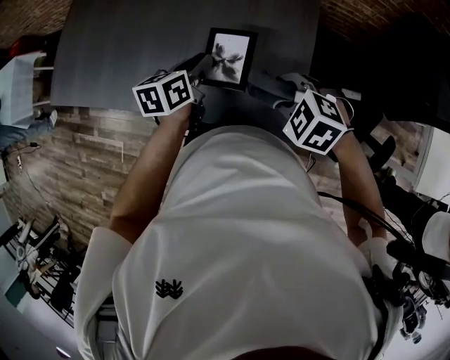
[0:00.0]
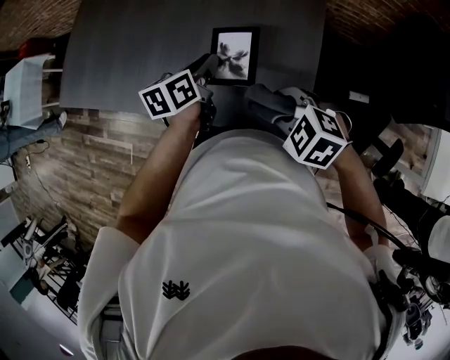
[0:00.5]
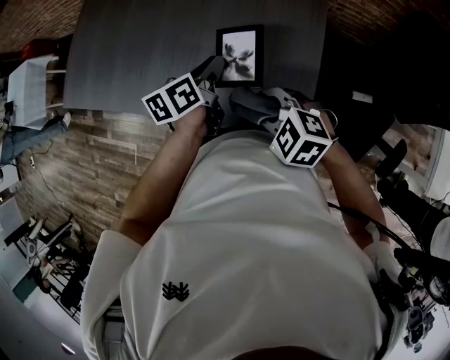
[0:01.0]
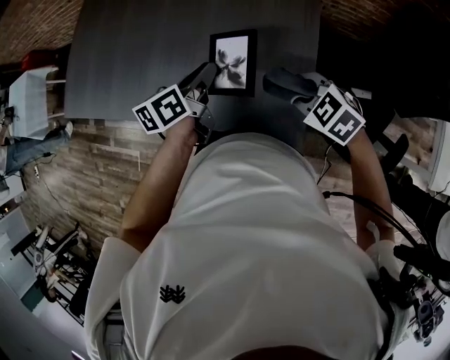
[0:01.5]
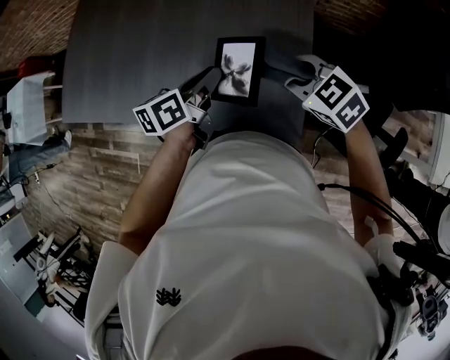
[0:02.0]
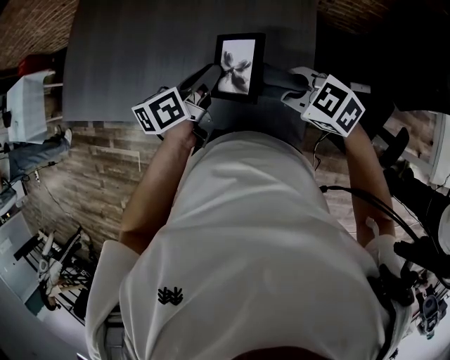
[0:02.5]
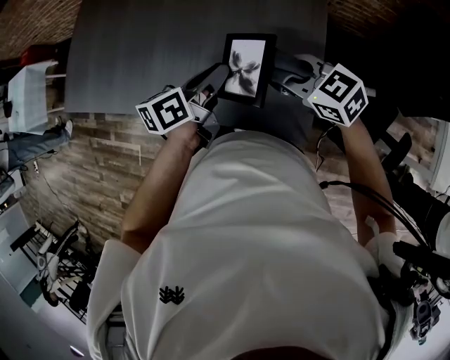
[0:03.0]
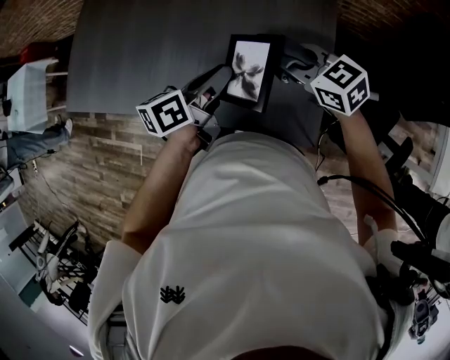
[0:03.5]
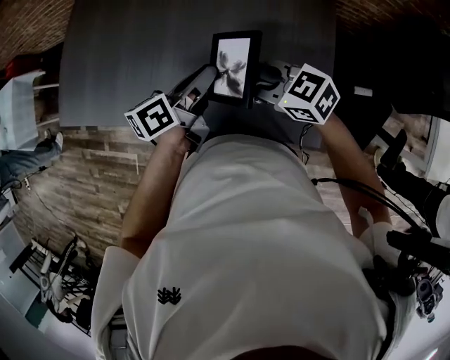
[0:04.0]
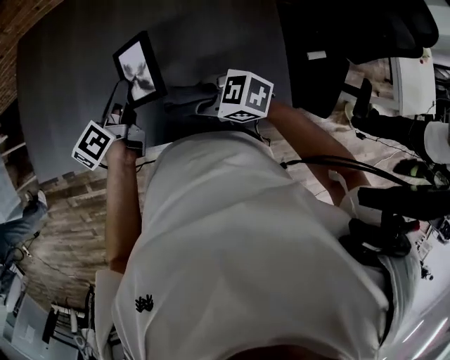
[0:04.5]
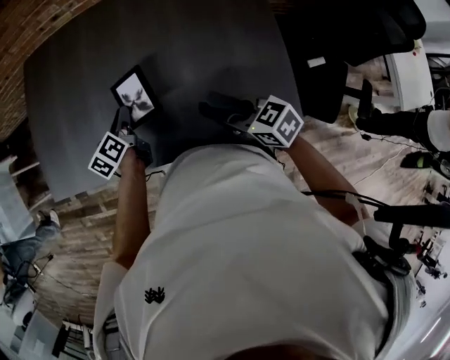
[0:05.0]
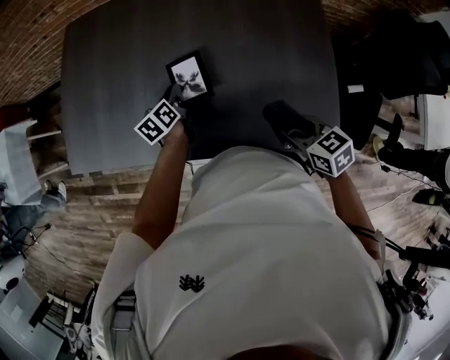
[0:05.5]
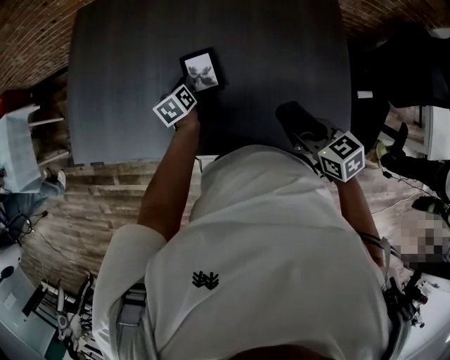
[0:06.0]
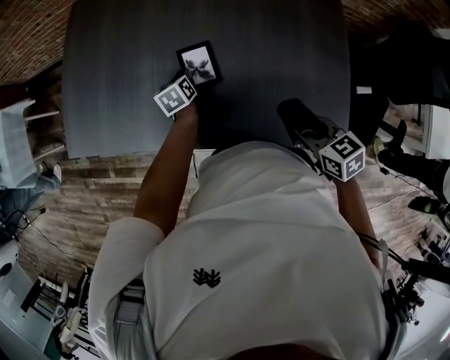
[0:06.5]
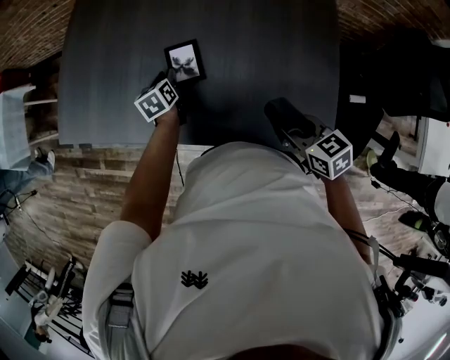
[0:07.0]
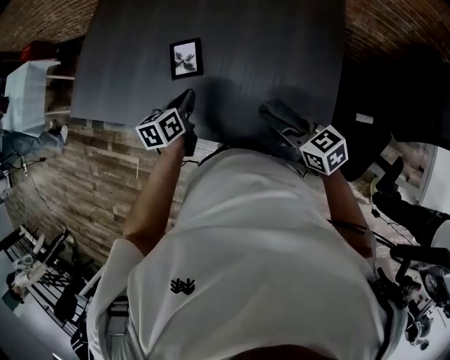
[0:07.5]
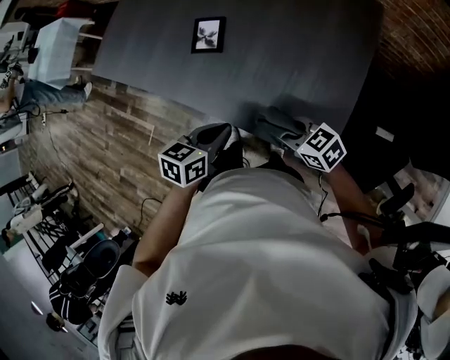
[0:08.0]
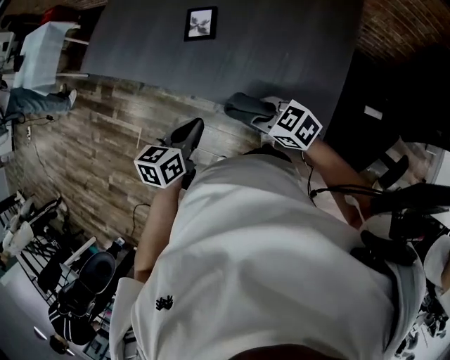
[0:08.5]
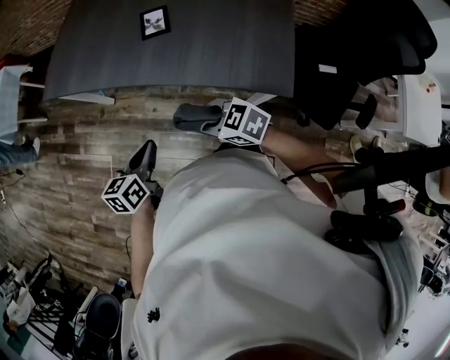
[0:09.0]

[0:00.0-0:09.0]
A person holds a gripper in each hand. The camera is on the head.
0:00.0 to 0:02.0: The right gripper reaches about 5 cm to the left, then returns, and turns by some 30 degrees.
0:02.0 to 0:04.5: The left gripper moves to the left and forward, some 25 cm; the right gripper shifts roughly 25 cm to the left, and rotates about 20 degrees.
0:04.5 to 0:07.0: The left gripper travels downward, to the left and forward by some 20 cm, and rotates roughly 40 degrees. The right gripper goes about 10 cm to the right and backward, and swivels about 30 degrees.
0:07.0 to 0:09.0: The right gripper travels to the left and backward by some 30 cm, and changes its angle by about 40 degrees. Meanwhile the left gripper shifts approximately 50 cm backward, and closes up.

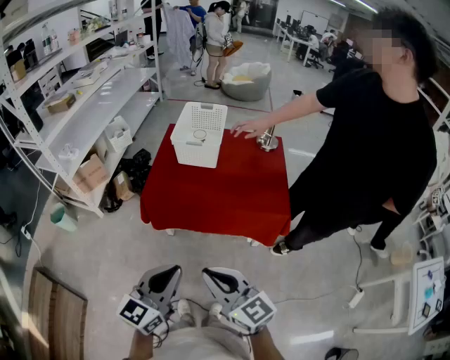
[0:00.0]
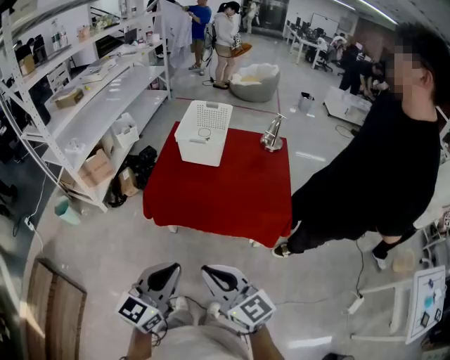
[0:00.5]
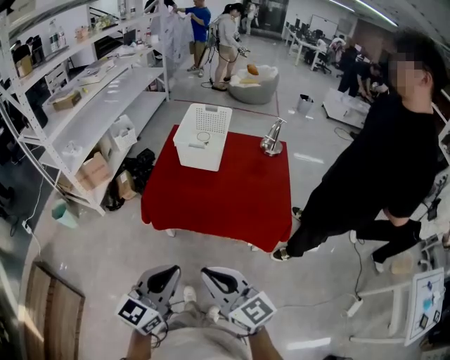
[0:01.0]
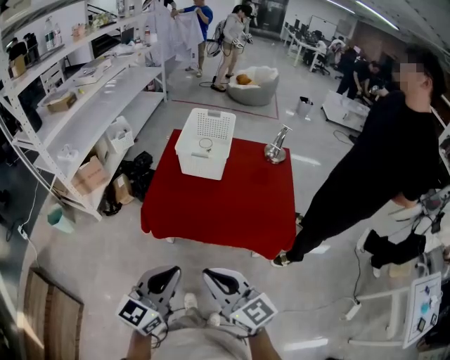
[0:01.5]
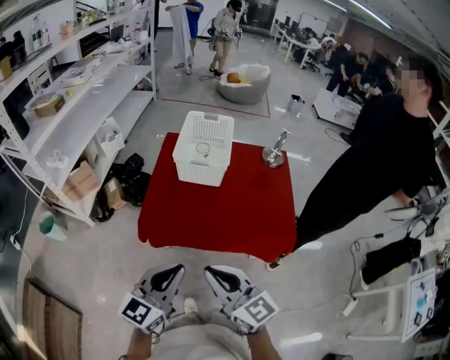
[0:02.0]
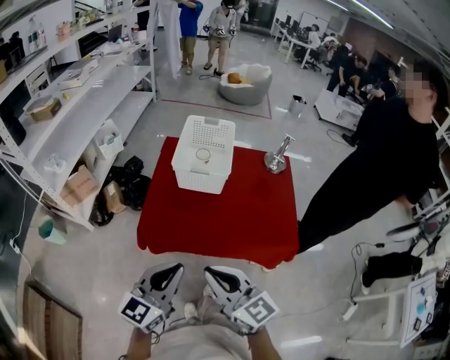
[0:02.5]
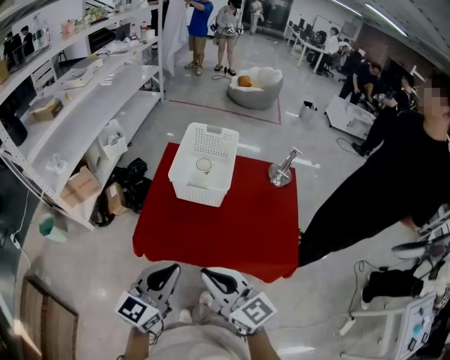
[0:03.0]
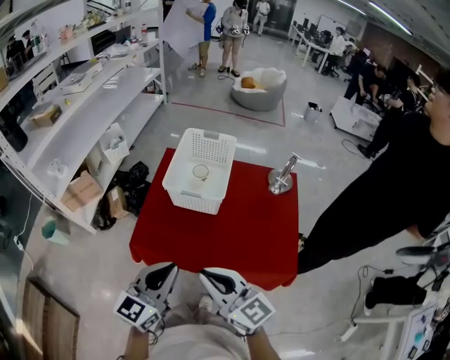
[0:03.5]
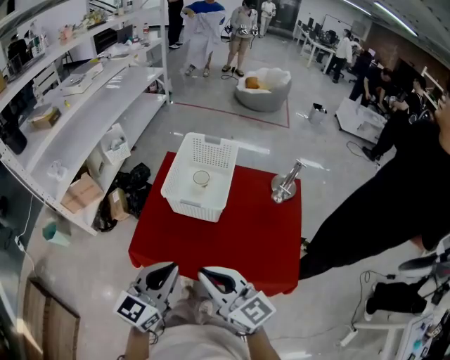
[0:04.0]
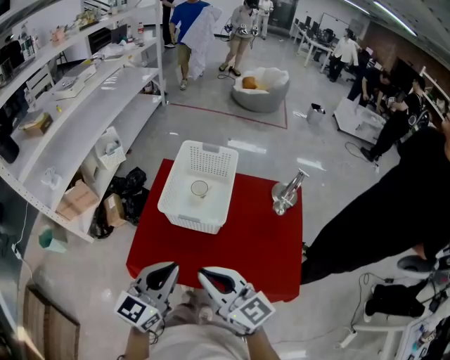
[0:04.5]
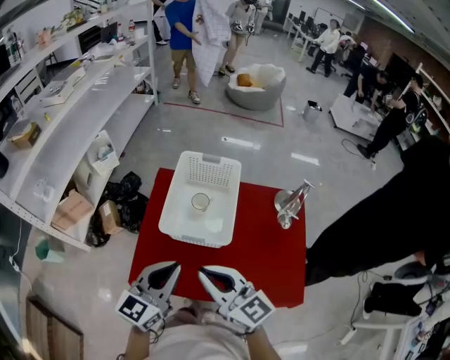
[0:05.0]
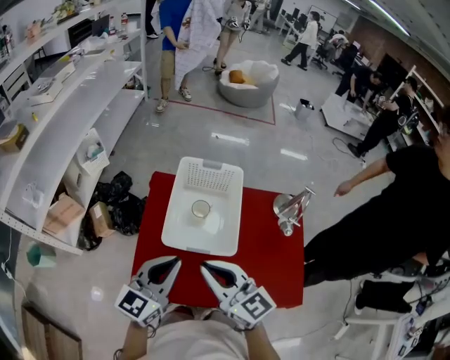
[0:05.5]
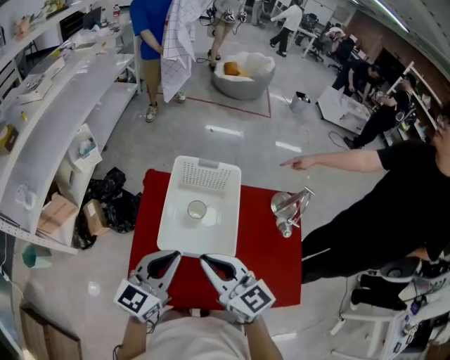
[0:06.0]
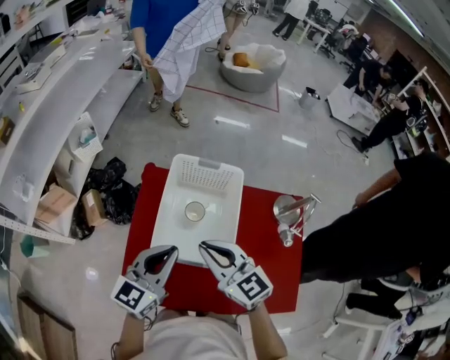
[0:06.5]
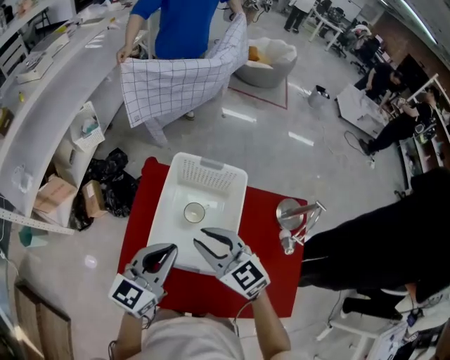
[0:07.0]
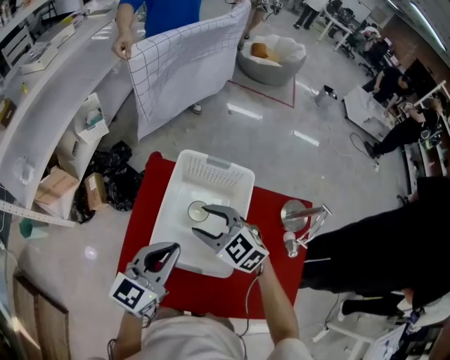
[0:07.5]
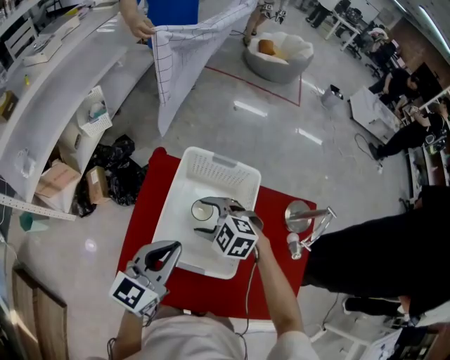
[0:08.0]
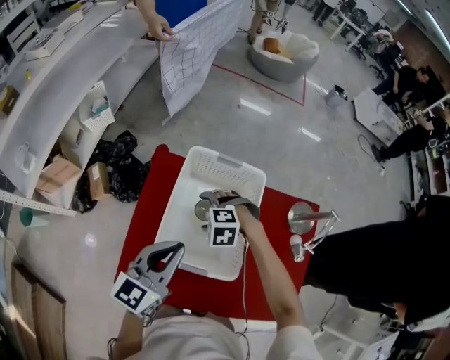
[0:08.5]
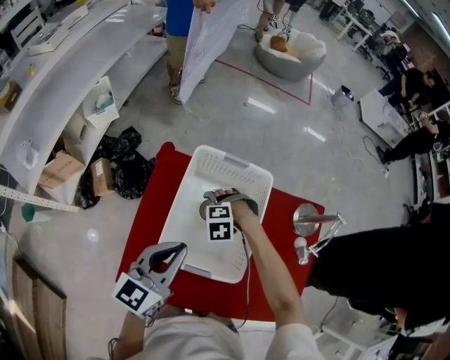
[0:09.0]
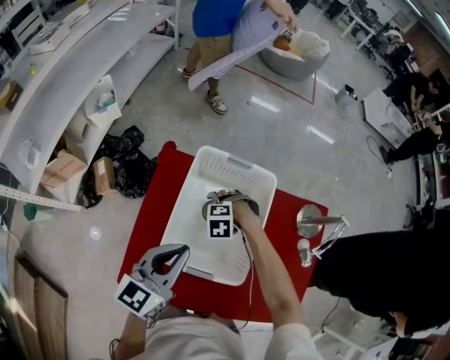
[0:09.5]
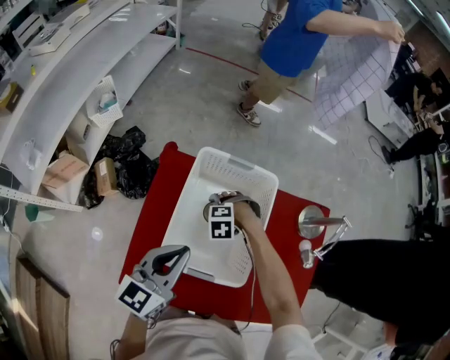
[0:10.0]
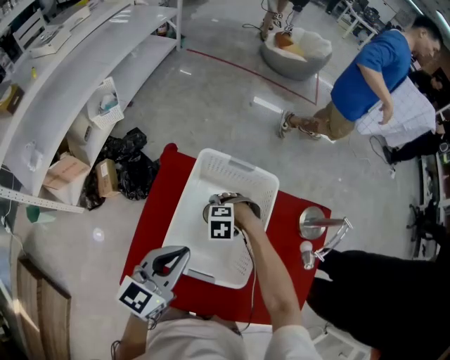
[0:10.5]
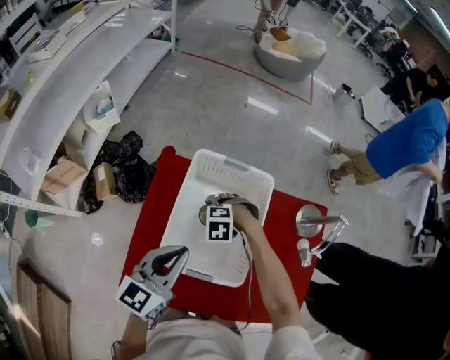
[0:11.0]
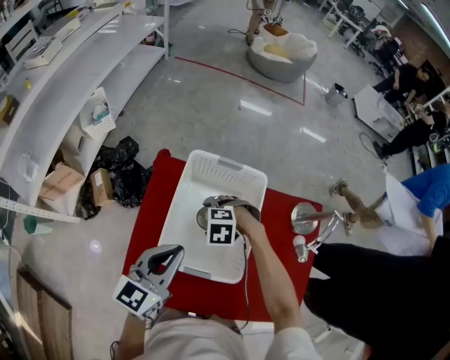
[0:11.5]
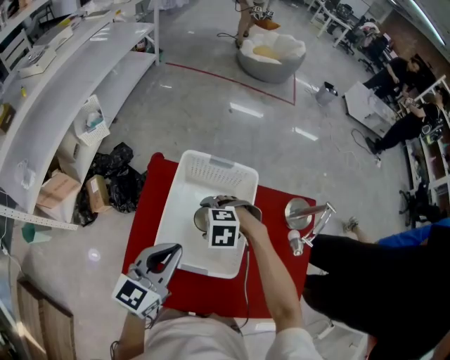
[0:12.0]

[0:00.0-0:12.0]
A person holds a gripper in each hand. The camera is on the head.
0:00.0 to 0:02.0: Both grippers travel together forward, approximately 15 cm.
0:02.0 to 0:04.0: Both grippers travel together forward, roughly 20 cm.
0:04.0 to 0:06.0: The two grippers go approximately 25 cm forward.
0:06.0 to 0:08.0: The right gripper heads downward and forward, covering some 25 cm, angles its fingers downward, by approximately 50 degrees, and opens up. The left gripper moves forward, approximately 10 cm.
0:08.0 to 0:10.0: The right gripper is displaced downward by roughly 15 cm, and tilts its fingers roughly 30 degrees downward.
0:10.0 to 0:12.0: The right gripper travels upward by some 10 cm.

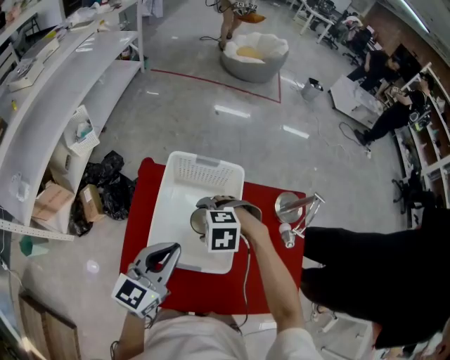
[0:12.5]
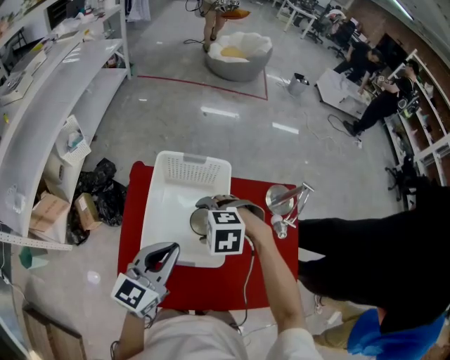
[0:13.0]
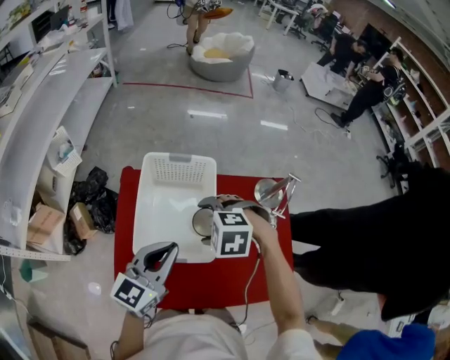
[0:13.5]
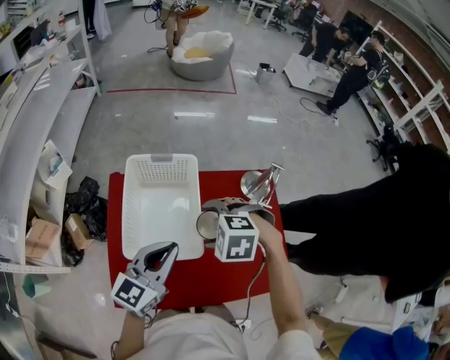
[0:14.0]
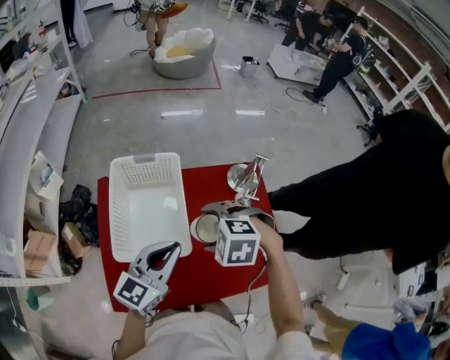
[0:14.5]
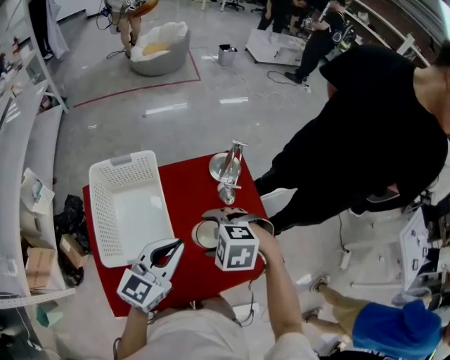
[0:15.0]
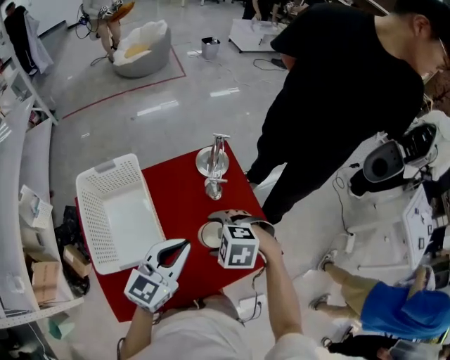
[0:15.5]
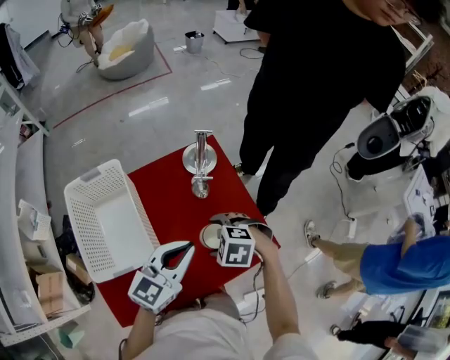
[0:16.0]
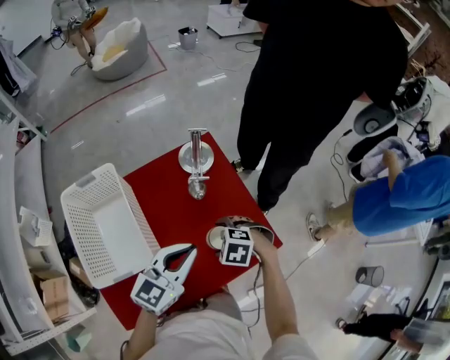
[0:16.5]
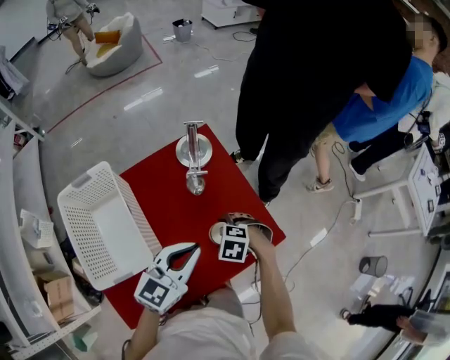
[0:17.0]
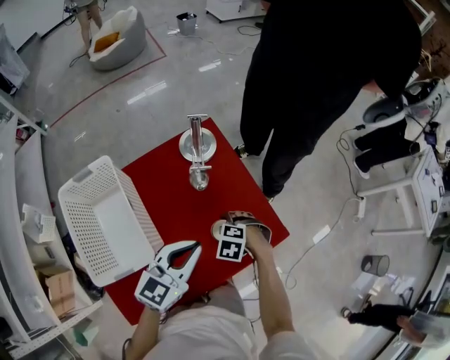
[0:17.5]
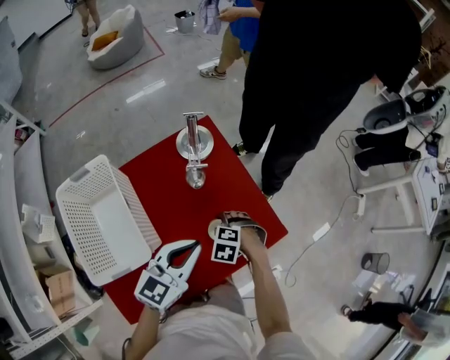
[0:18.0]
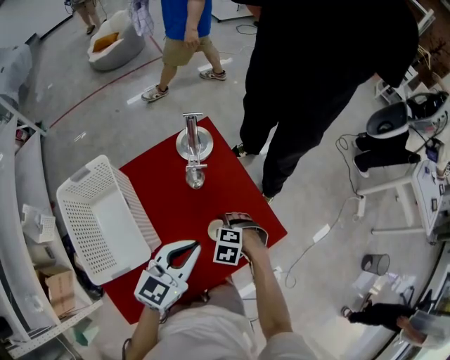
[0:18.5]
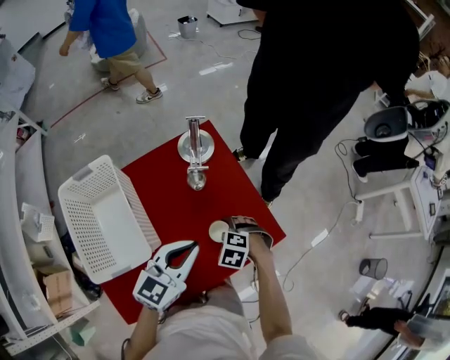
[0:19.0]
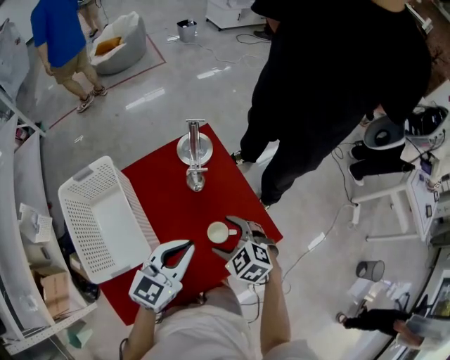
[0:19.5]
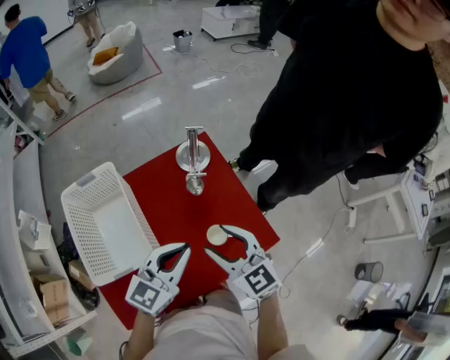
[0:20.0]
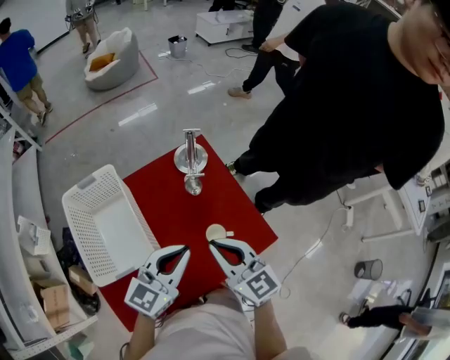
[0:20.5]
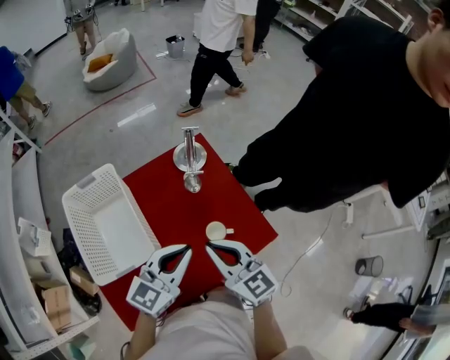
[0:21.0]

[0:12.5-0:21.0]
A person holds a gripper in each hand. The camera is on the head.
0:12.5 to 0:14.5: The right gripper shifts approximately 20 cm to the right, backward and upward, and turns by roughly 20 degrees, while the left gripper shifts about 15 cm to the right and backward.
0:14.5 to 0:16.5: The right gripper moves some 25 cm, and rotates about 30 degrees. The left gripper ends up roughly 20 cm from where it was, and changes its angle by about 20 degrees.
0:16.5 to 0:19.0: The right gripper is displaced downward by approximately 5 cm.
0:19.0 to 0:21.0: The left gripper shifts some 5 cm upward. The right gripper goes about 25 cm upward, angles its fingers upward, by approximately 60 degrees, and closes its fingers.
